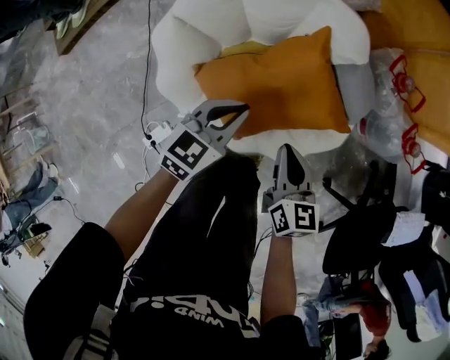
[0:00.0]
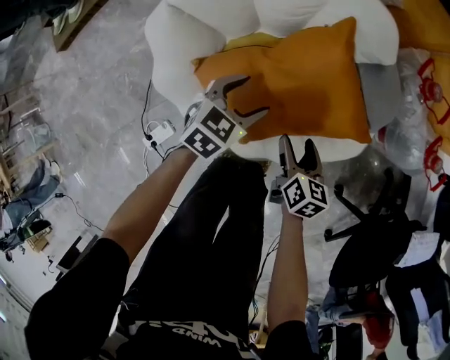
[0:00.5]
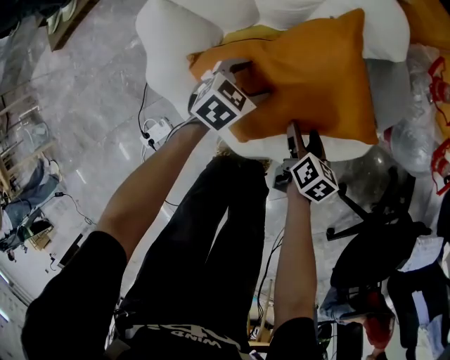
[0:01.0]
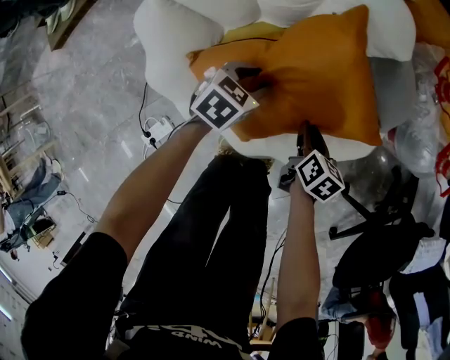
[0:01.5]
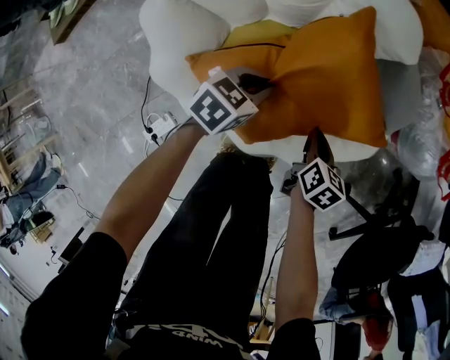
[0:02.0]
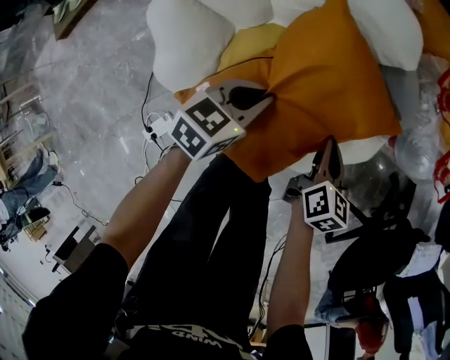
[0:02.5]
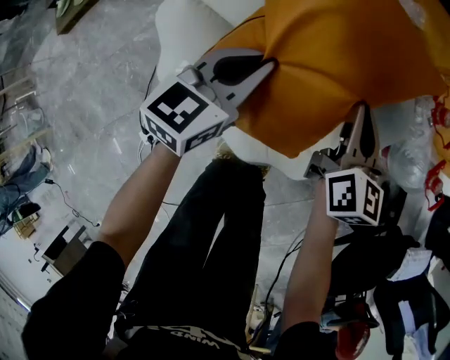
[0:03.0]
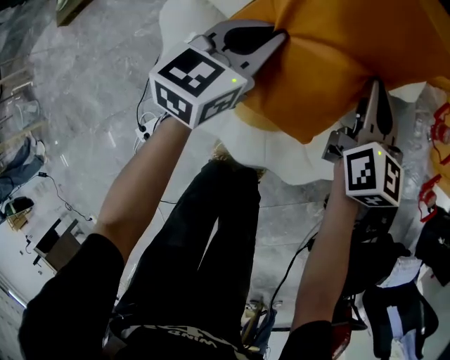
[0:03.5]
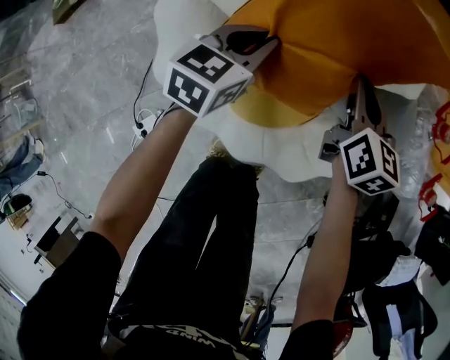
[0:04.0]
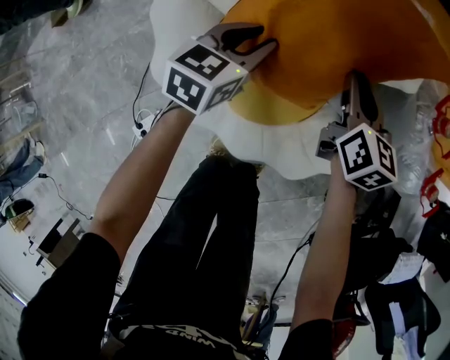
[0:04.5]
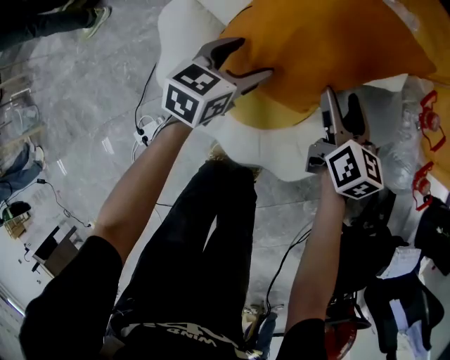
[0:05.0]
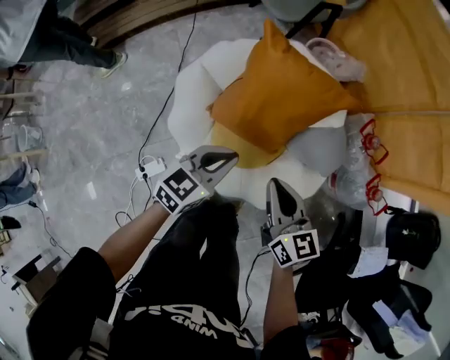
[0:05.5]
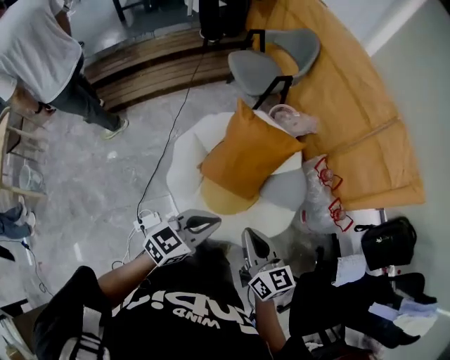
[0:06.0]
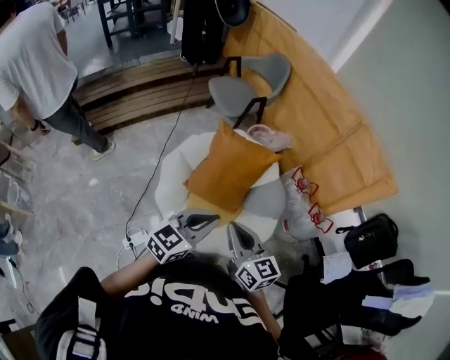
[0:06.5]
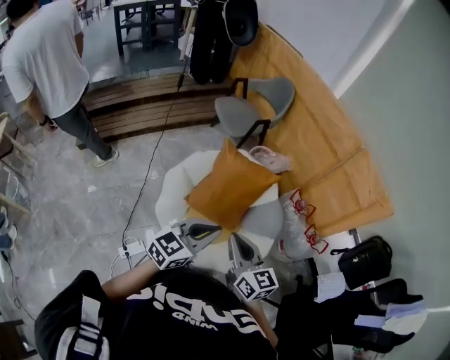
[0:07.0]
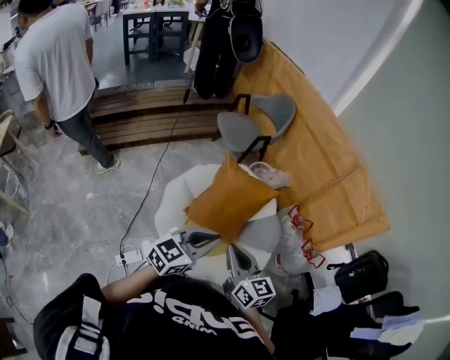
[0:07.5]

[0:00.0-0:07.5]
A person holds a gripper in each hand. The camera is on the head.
0:00.0 to 0:02.0: Both grippers move downward, about 20 cm. The right gripper rotates about 30 degrees, and opens, then closes once more, while the left gripper changes its angle by approximately 20 degrees, and opens and closes again.
0:02.0 to 0:04.0: The right gripper travels forward, upward and to the left by roughly 25 cm, and swivels about 30 degrees. Meanwhile the left gripper heads to the left, forward and upward, covering some 15 cm, and turns by about 30 degrees.
0:04.0 to 0:05.5: Both grippers travel together upward and backward, about 30 cm. The right gripper changes its angle by roughly 20 degrees, and opens and closes again, while the left gripper opens, then closes once more.
0:05.5 to 0:07.5: The two grippers go some 30 cm upward and backward. The left gripper changes its angle by some 20 degrees.

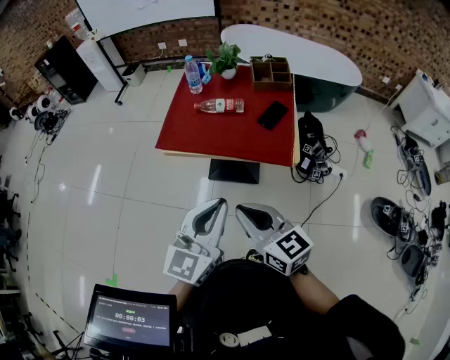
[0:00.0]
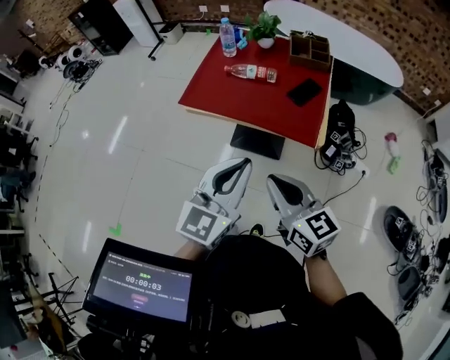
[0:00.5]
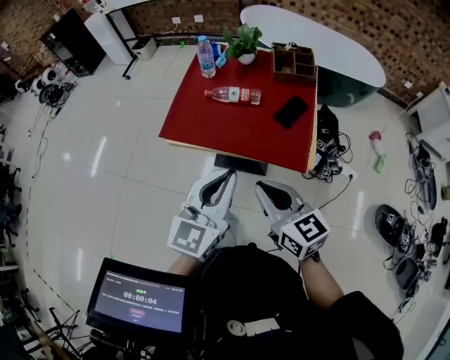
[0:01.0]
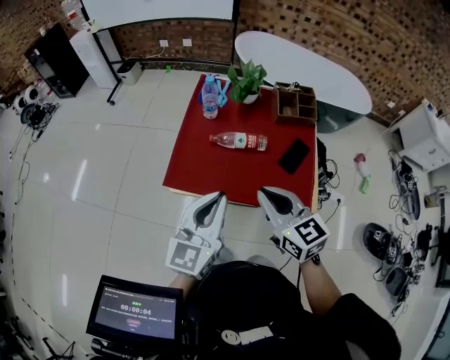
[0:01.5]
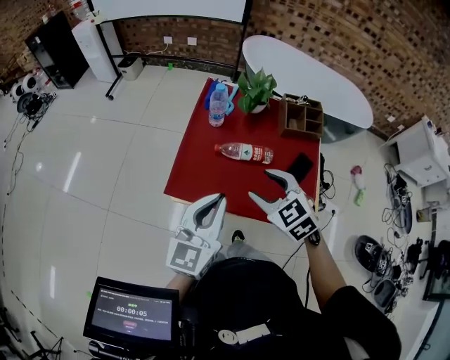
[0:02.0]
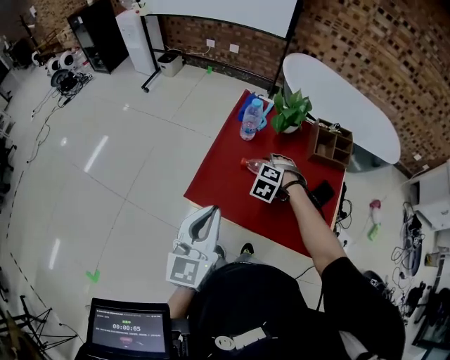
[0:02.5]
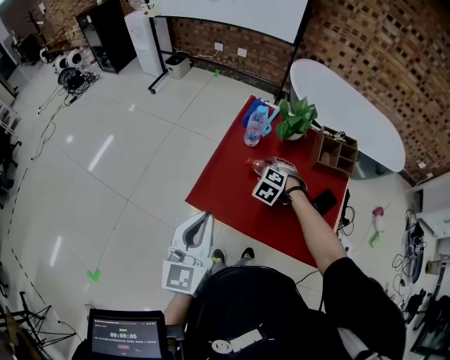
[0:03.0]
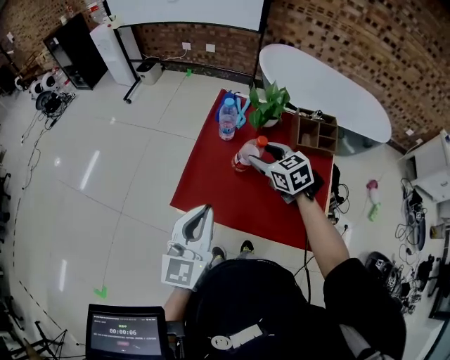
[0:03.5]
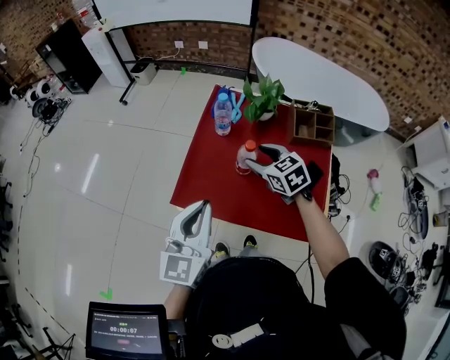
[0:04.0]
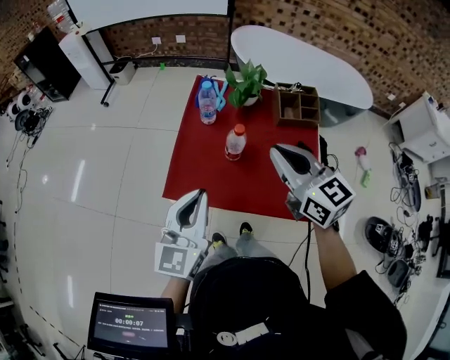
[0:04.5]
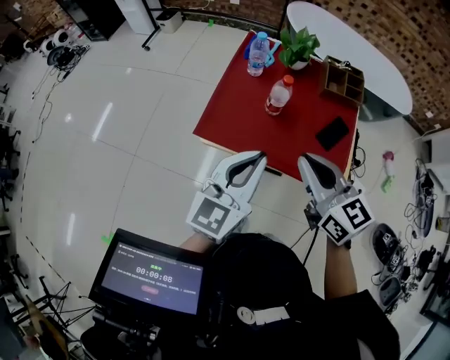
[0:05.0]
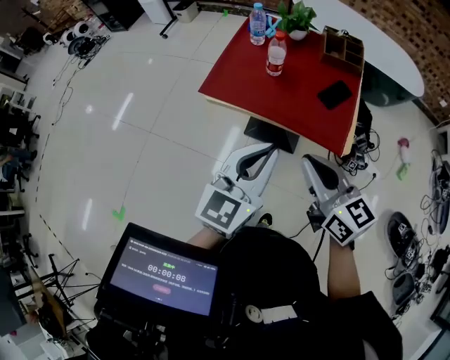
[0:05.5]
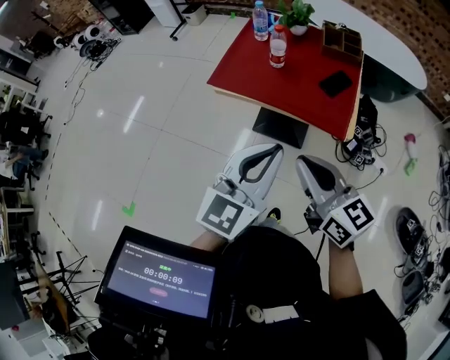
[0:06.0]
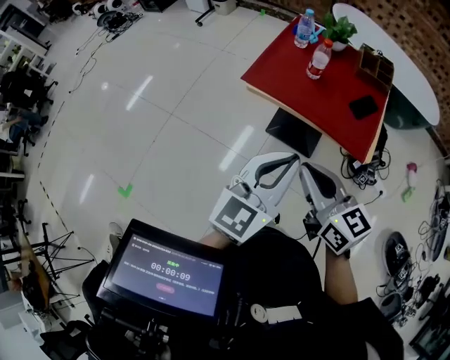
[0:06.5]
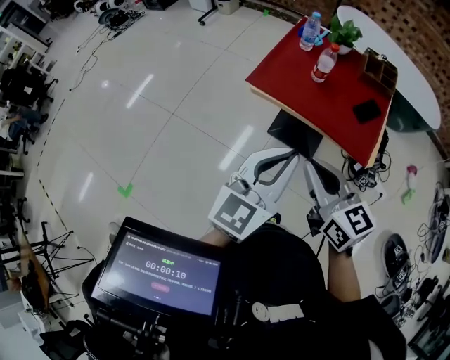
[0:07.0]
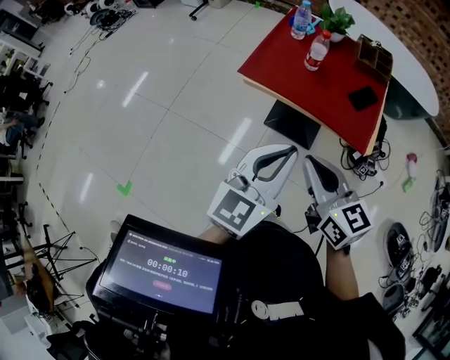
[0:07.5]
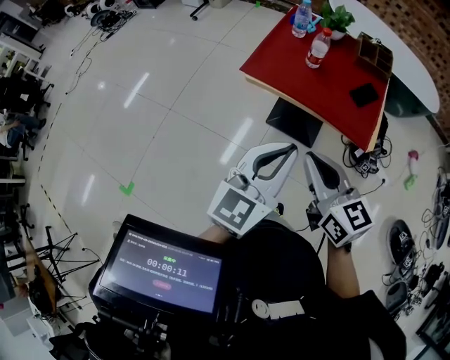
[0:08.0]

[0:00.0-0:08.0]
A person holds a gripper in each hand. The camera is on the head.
0:00.0 to 0:02.0: The grippers both shift forward by some 30 cm. The right gripper rotates about 40 degrees, and opens.
0:02.0 to 0:04.0: The left gripper goes to the left and returns, about 10 cm each way, while the right gripper moves forward, some 15 cm.
0:04.0 to 0:06.0: The grippers both shift backward by roughly 40 cm. The right gripper points its fingers roughly 30 degrees further upward, and closes its fingers.
0:06.0 to 0:08.0: Both grippers move to the left, some 10 cm.

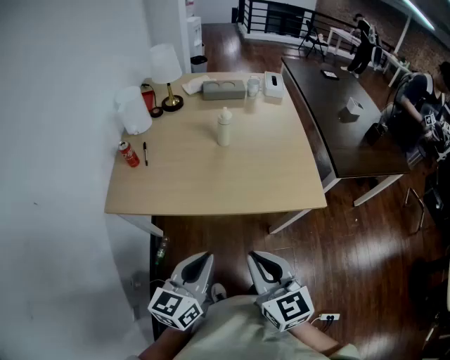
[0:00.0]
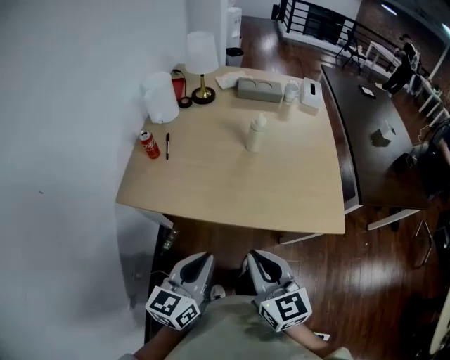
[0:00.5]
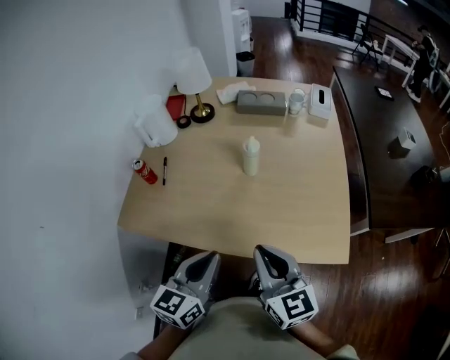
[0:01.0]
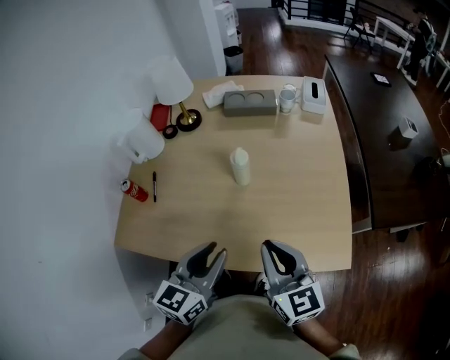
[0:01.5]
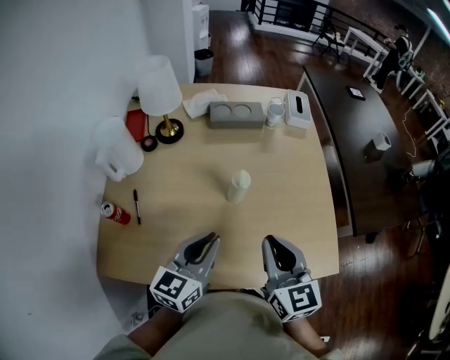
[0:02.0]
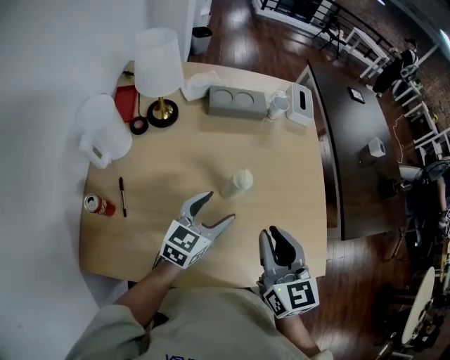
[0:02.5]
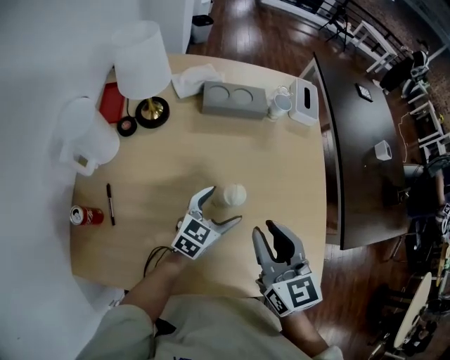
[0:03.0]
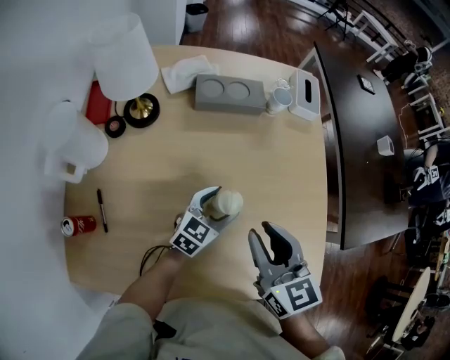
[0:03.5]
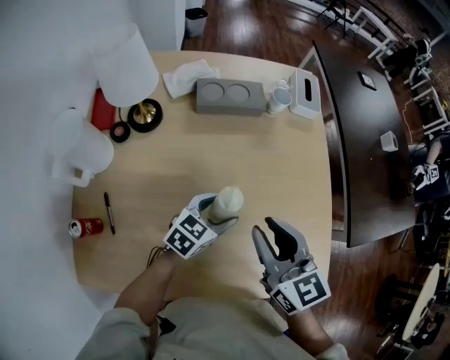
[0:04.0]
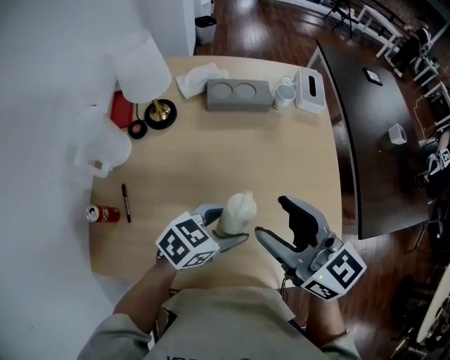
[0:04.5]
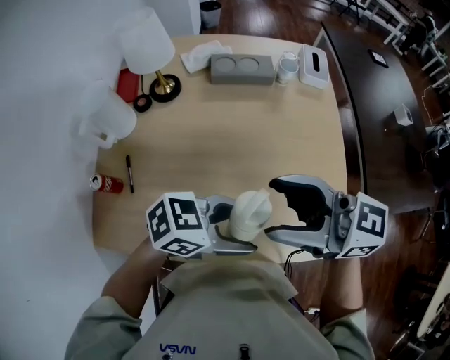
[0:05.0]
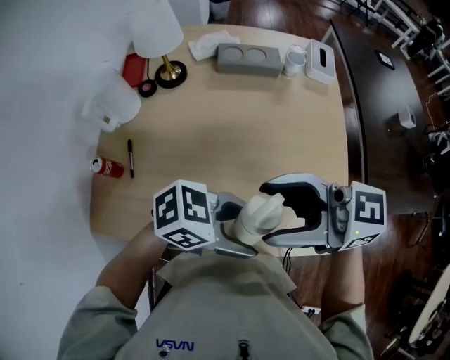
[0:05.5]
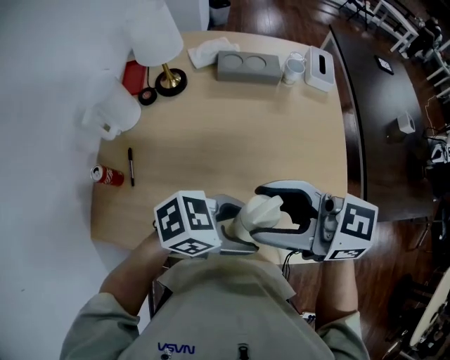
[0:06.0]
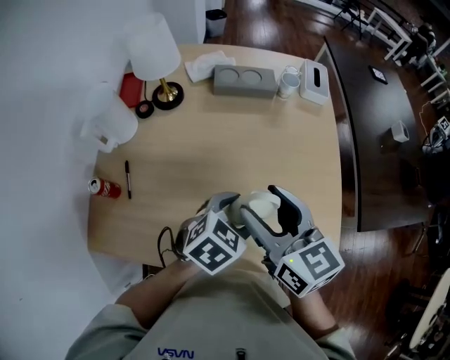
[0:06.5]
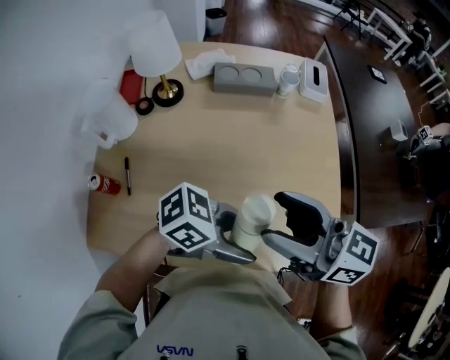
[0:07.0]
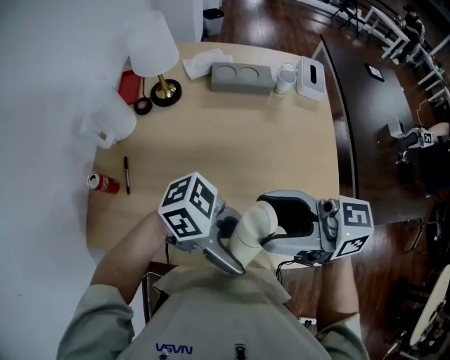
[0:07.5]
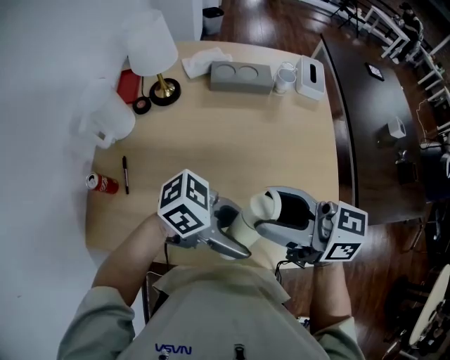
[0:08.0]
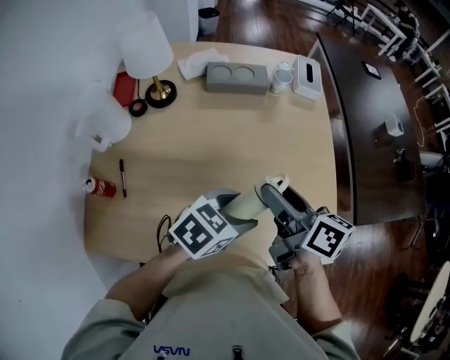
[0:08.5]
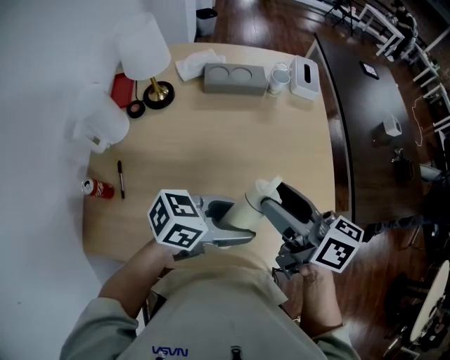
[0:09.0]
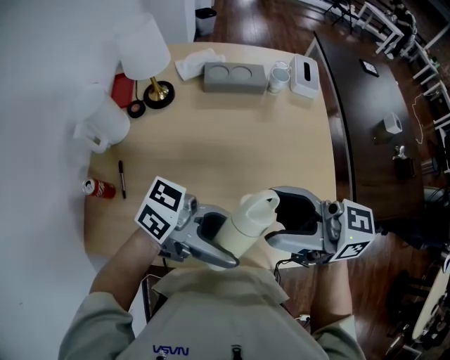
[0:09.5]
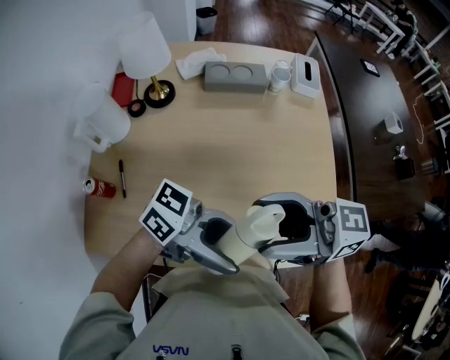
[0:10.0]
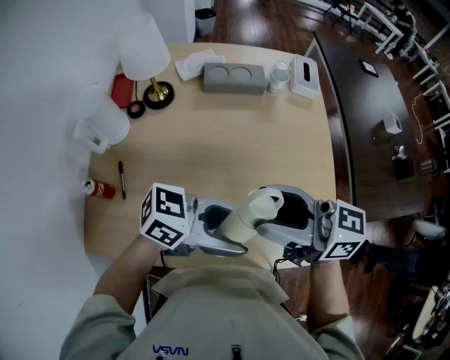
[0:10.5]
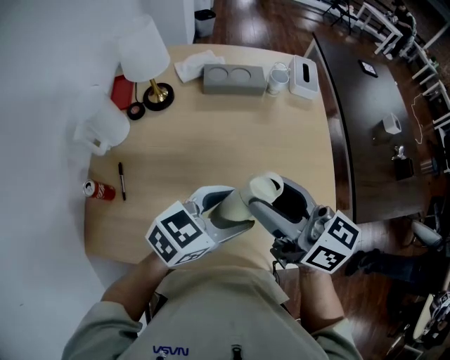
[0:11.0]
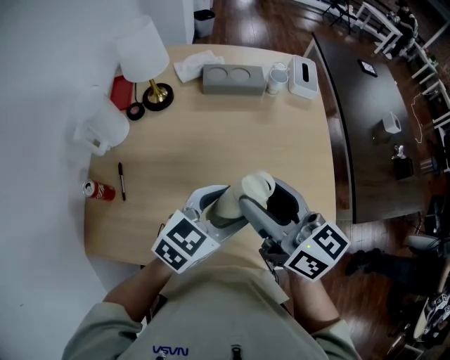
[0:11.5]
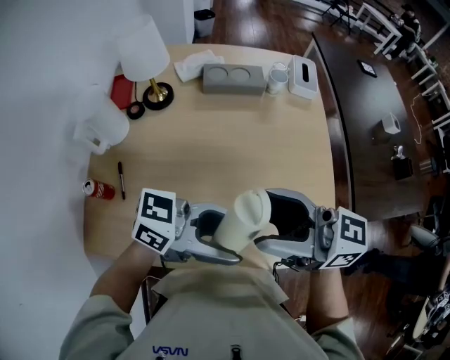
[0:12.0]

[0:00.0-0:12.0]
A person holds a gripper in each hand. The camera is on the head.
0:00.0 to 0:02.0: Both grippers move forward, some 35 cm.
0:02.0 to 0:04.0: The right gripper goes roughly 10 cm forward. Meanwhile the left gripper heads forward and downward, covering roughly 20 cm, swivels approximately 30 degrees, and opens.
0:04.0 to 0:06.0: The left gripper moves approximately 25 cm, and rotates about 30 degrees. The right gripper ends up roughly 15 cm from where it was, turns by about 50 degrees, and opens up.
0:06.0 to 0:08.0: The left gripper travels downward and back again, approximately 5 cm each way, and turns by about 20 degrees.
0:08.0 to 0:10.0: The left gripper goes roughly 5 cm upward, and turns by roughly 20 degrees; the right gripper moves approximately 5 cm downward and comes back.
